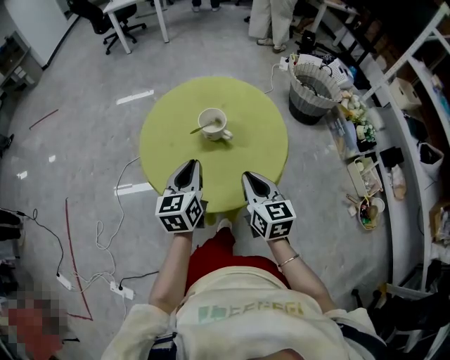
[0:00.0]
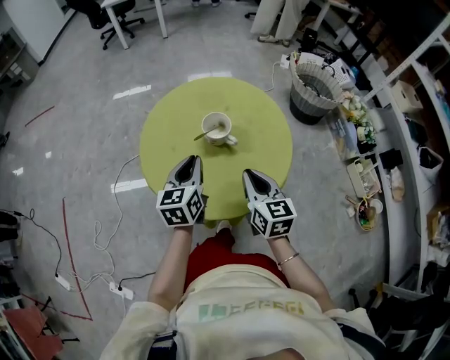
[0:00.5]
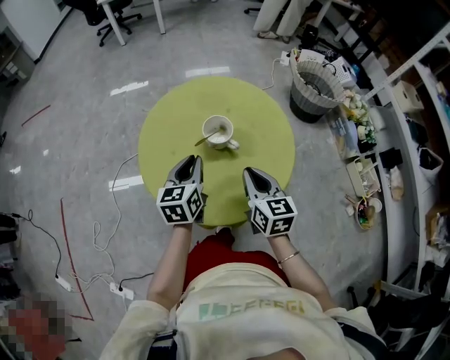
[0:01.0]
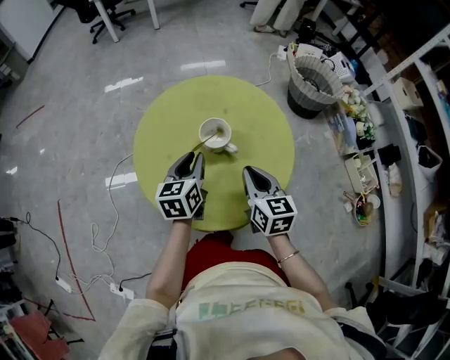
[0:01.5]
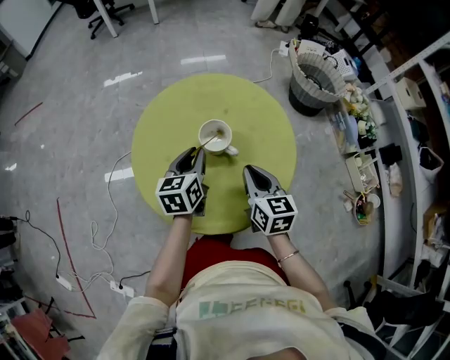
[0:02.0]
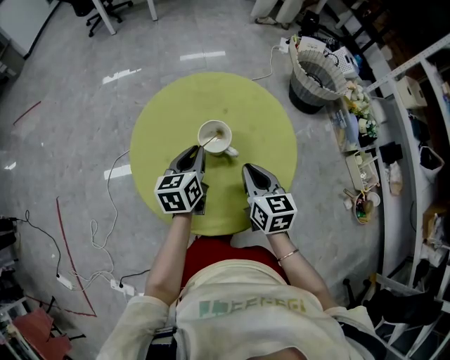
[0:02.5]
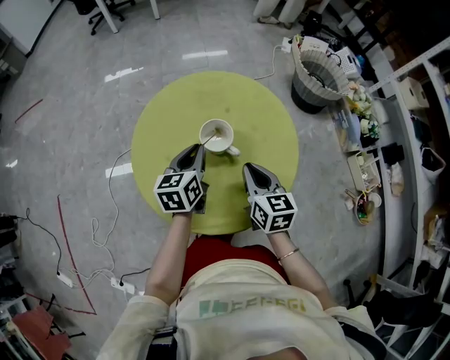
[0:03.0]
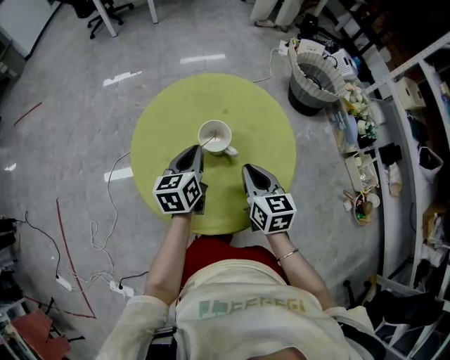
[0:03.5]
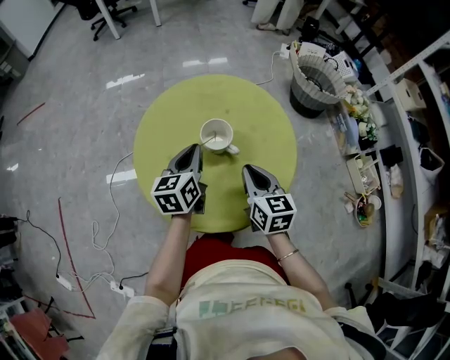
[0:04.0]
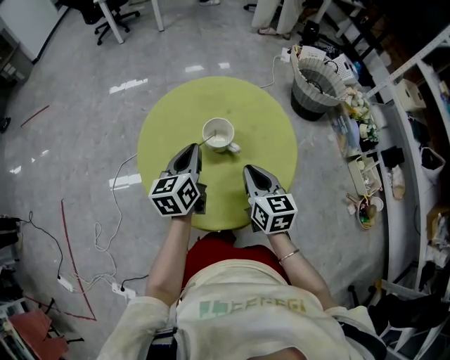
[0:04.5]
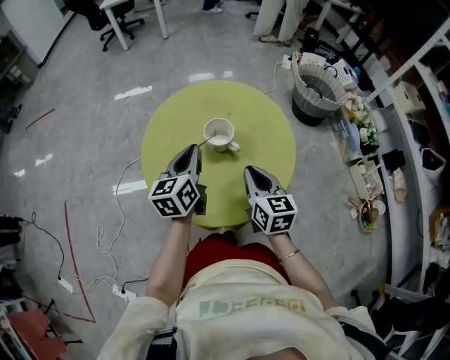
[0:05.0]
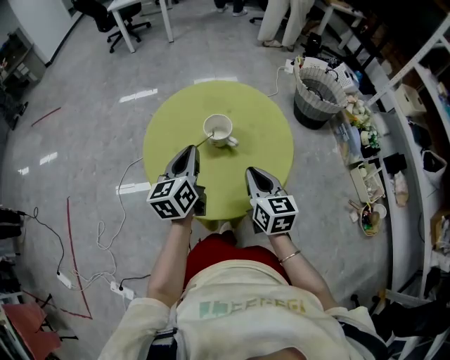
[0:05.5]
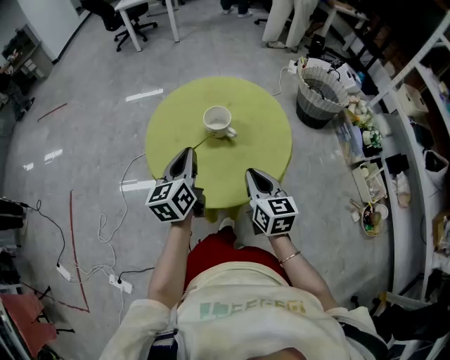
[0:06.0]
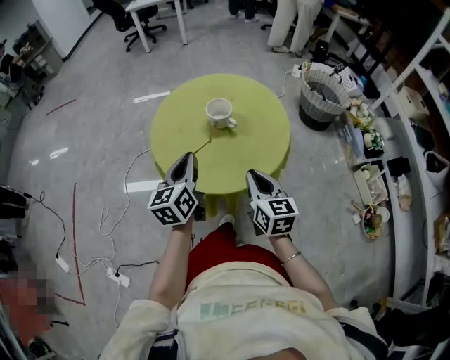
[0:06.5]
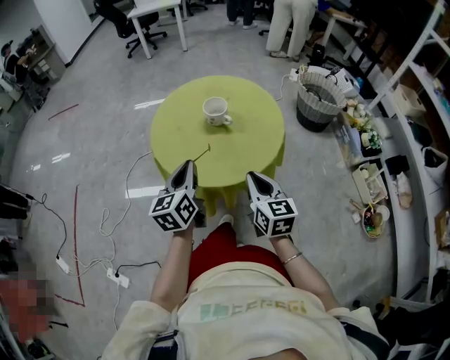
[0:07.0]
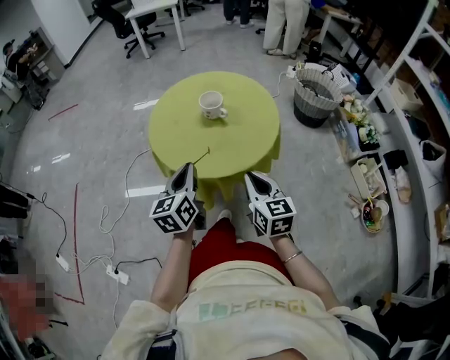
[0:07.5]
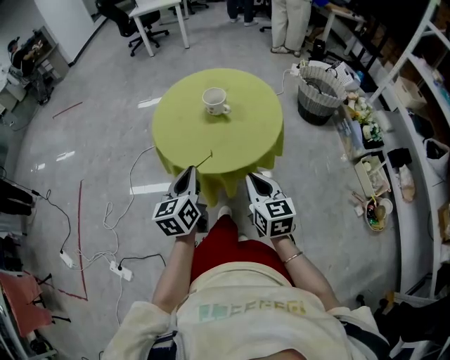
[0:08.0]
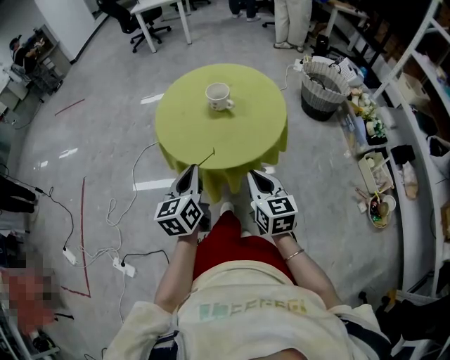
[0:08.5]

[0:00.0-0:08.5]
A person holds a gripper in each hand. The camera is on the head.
0:00.0 to 0:02.0: The left gripper heads forward and downward, covering some 15 cm. Meanwhile the right gripper shifts approximately 10 cm forward.
0:02.0 to 0:04.0: The grippers move only a little.
0:04.0 to 0:06.5: The grippers both shift backward by about 20 cm.
0:06.5 to 0:08.5: The grippers both shift backward by about 10 cm.

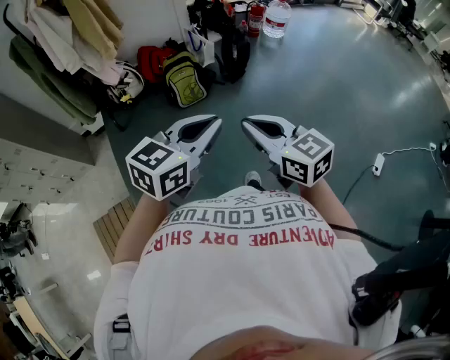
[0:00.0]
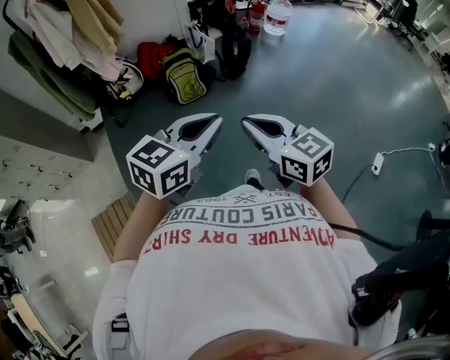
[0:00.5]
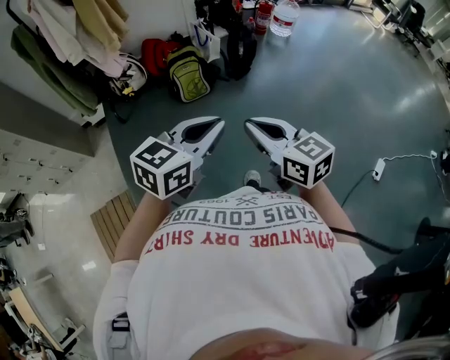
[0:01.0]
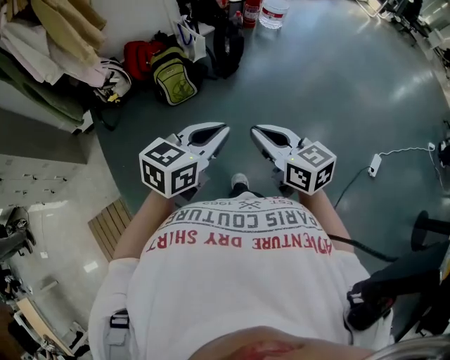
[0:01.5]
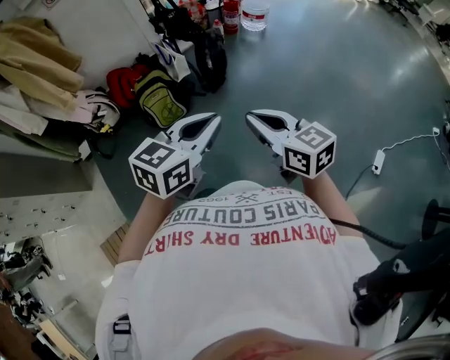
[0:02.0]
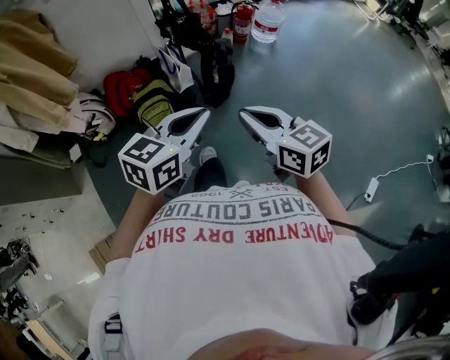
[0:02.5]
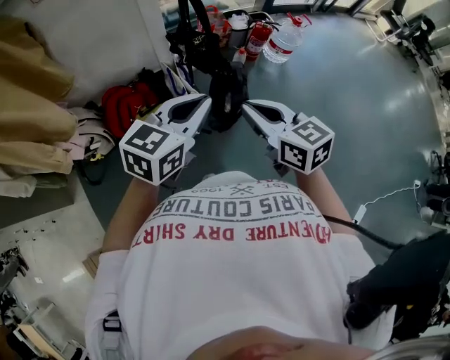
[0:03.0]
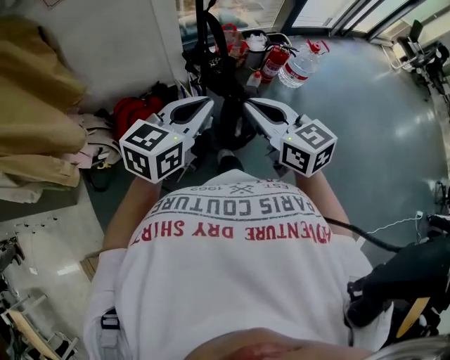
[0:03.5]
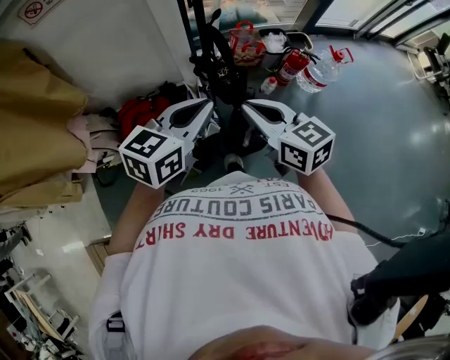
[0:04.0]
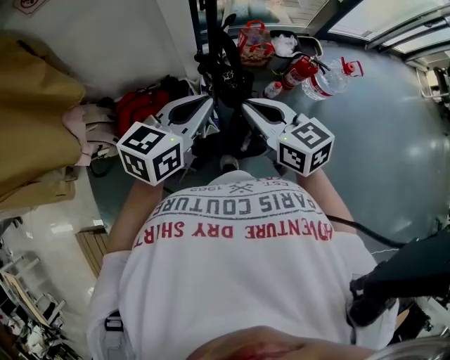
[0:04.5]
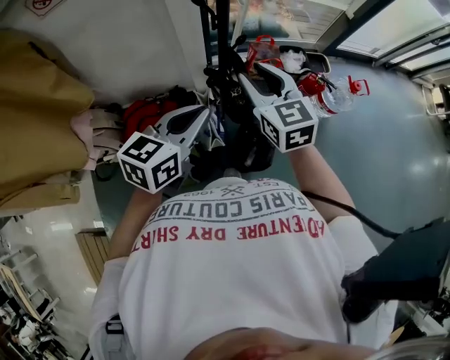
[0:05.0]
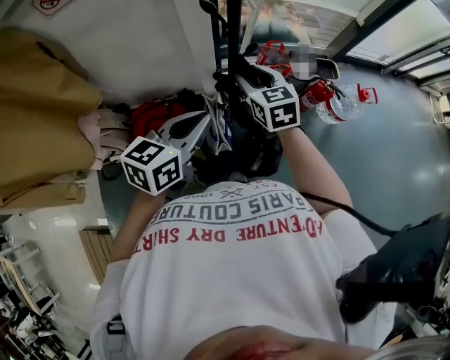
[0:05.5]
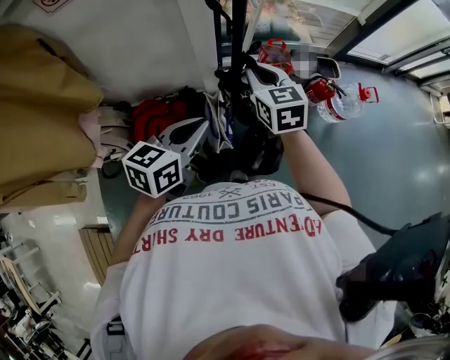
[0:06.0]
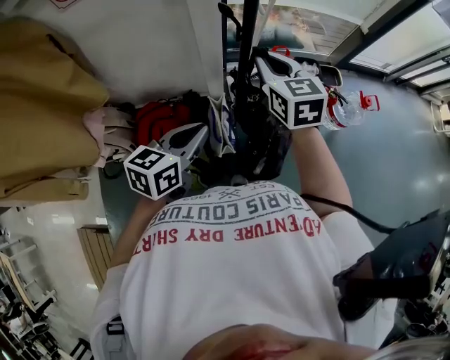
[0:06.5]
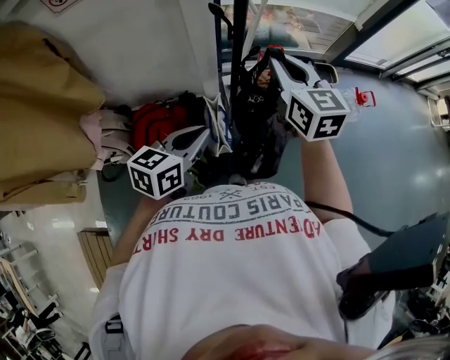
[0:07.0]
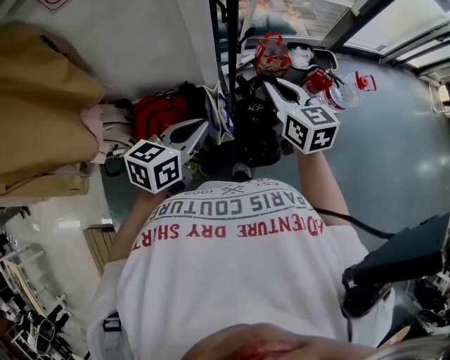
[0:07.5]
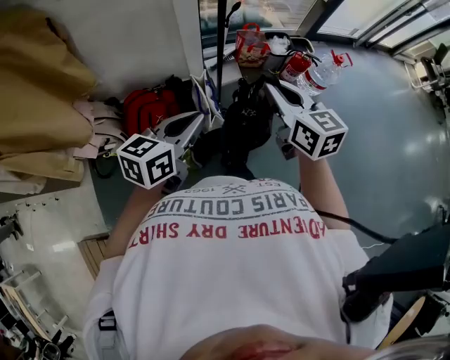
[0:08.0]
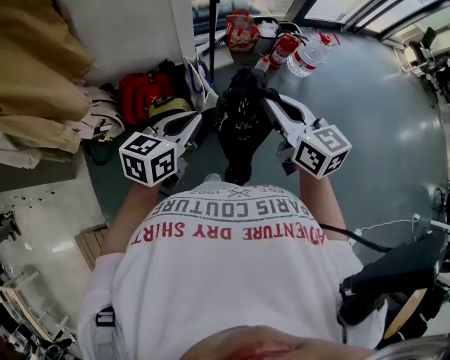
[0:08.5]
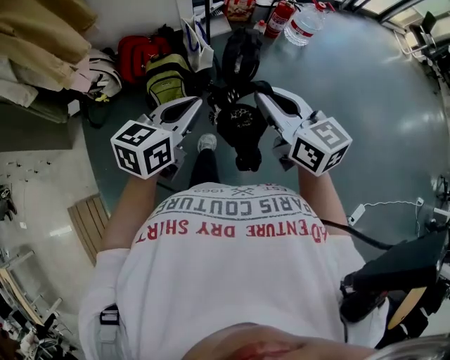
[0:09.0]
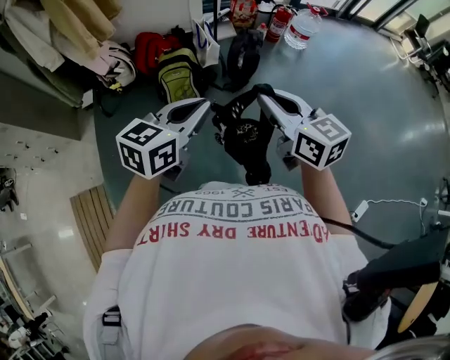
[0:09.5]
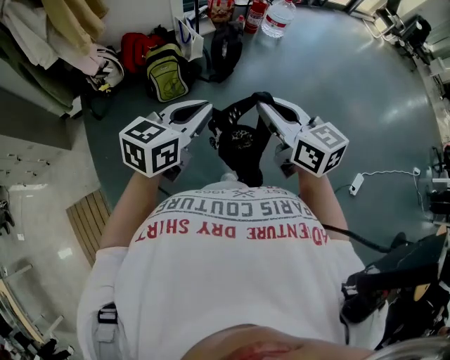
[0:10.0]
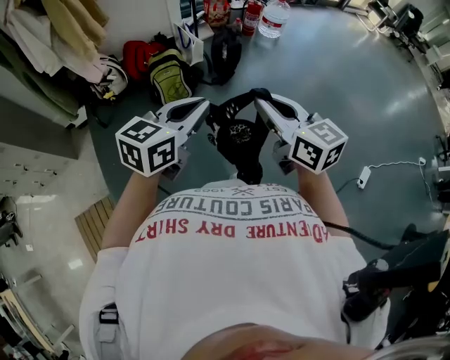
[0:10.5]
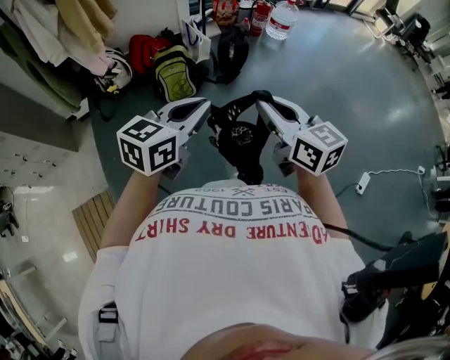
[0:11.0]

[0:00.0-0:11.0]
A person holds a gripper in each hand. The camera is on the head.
0:00.0 to 0:02.0: Both grippers travel together forward and to the right, about 30 cm.
0:02.0 to 0:03.5: The two grippers travel together, forward, about 60 cm.
0:03.5 to 0:05.5: The left gripper goes about 25 cm forward. Meanwhile the right gripper heads forward, covering about 40 cm, and opens.
0:05.5 to 0:07.5: The right gripper heads backward, to the right and upward, covering some 10 cm, and closes up. Meanwhile the left gripper is displaced backward by some 5 cm.
0:07.5 to 0:09.0: The two grippers travel together, backward, some 60 cm.
0:09.0 to 0:11.0: Both grippers move backward, approximately 35 cm.

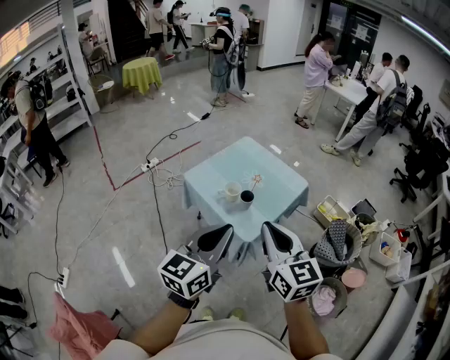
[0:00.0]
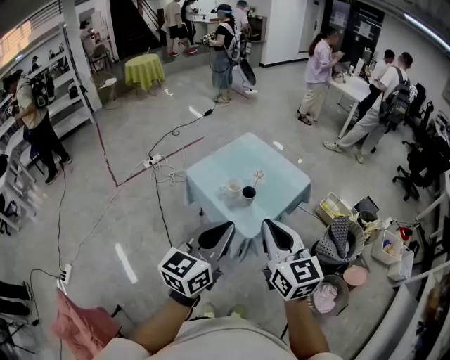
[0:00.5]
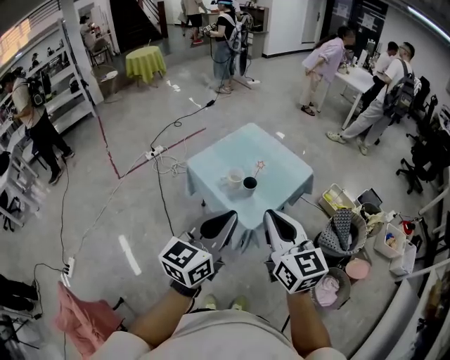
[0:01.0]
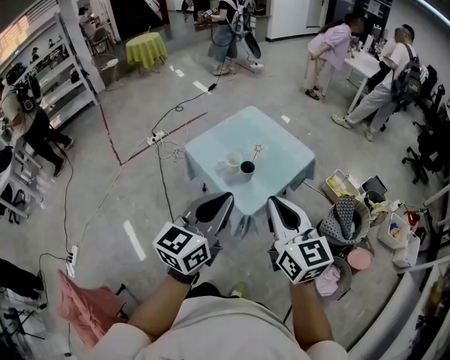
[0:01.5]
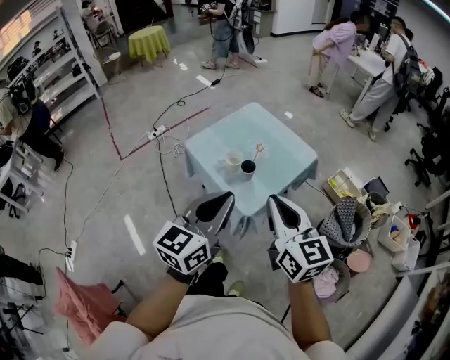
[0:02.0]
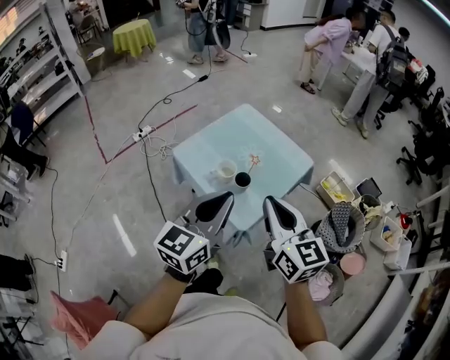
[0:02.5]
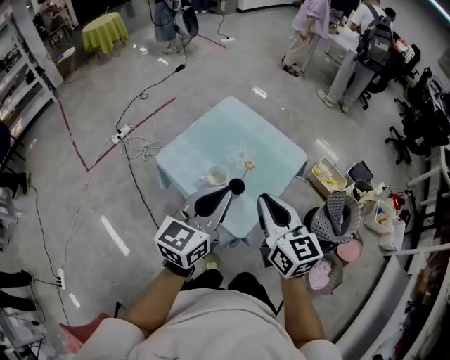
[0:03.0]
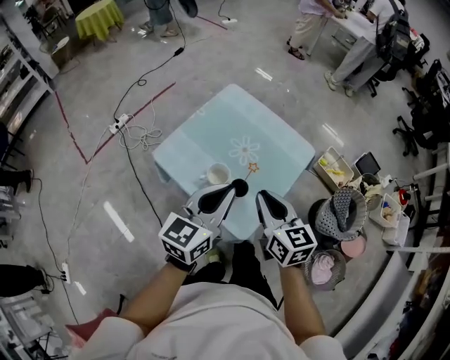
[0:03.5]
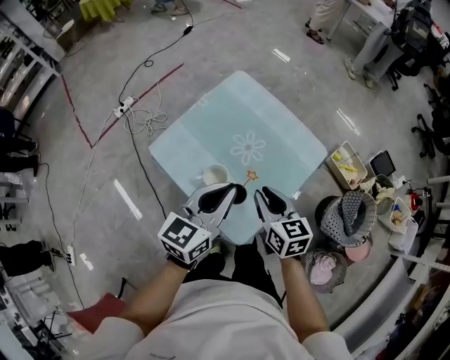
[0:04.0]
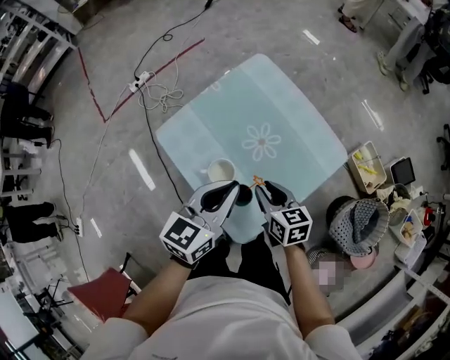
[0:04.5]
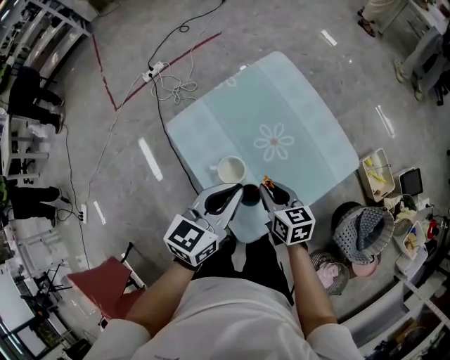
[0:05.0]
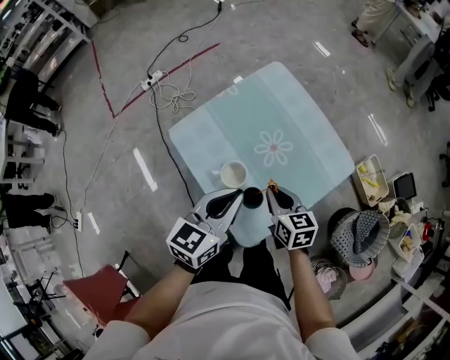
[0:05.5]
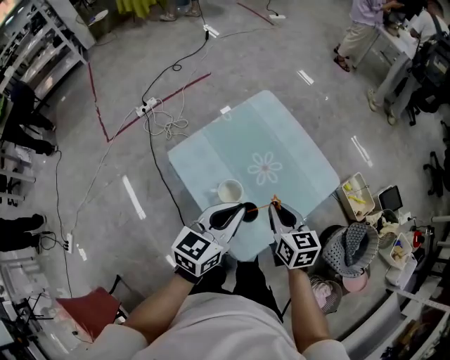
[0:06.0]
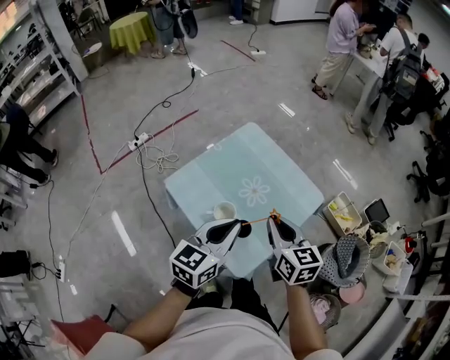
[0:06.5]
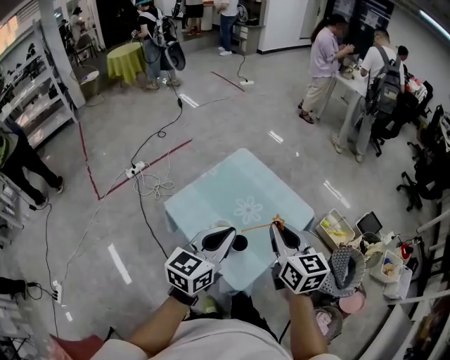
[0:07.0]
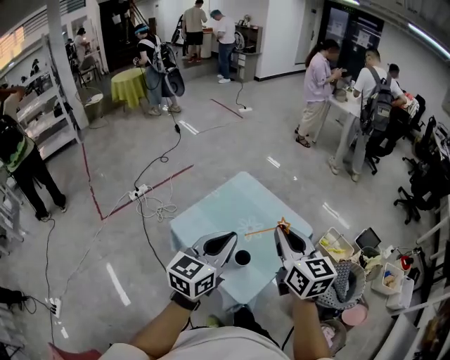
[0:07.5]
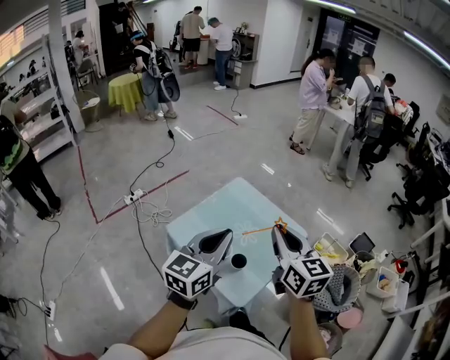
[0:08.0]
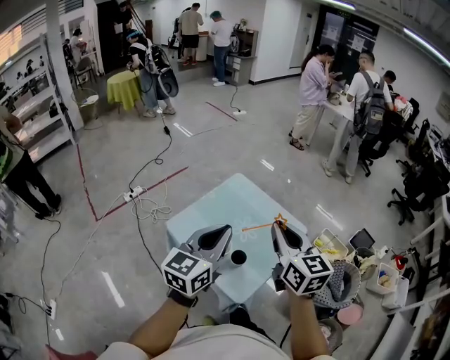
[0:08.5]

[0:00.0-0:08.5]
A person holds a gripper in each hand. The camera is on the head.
0:00.0 to 0:02.0: The left gripper ends up approximately 5 cm from where it was; the right gripper goes about 5 cm to the right.
0:02.0 to 0:04.0: Both grippers travel together forward and downward, roughly 40 cm. The right gripper changes its angle by approximately 30 degrees.
0:04.0 to 0:06.5: The left gripper reaches roughly 5 cm downward, then returns. Meanwhile the right gripper goes approximately 10 cm upward.
0:06.5 to 0:08.5: Both grippers move upward, about 15 cm.
